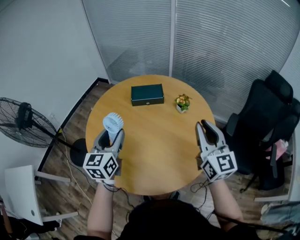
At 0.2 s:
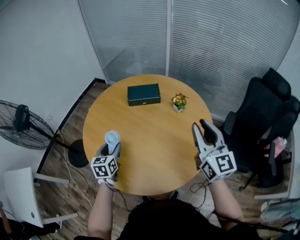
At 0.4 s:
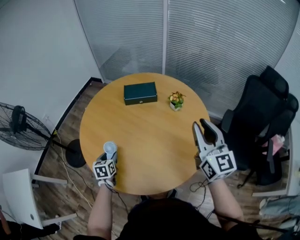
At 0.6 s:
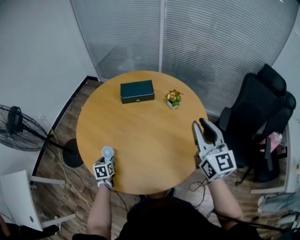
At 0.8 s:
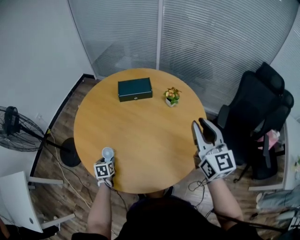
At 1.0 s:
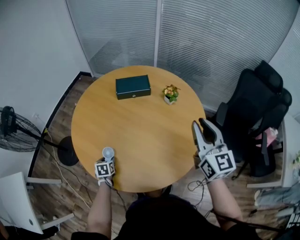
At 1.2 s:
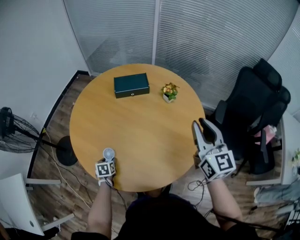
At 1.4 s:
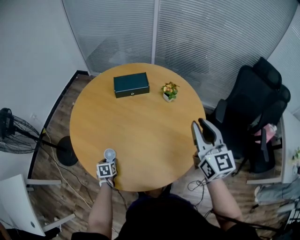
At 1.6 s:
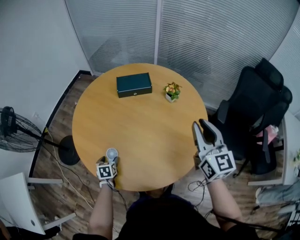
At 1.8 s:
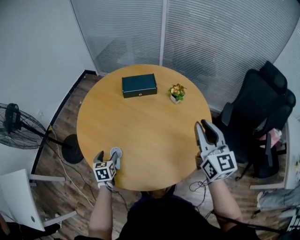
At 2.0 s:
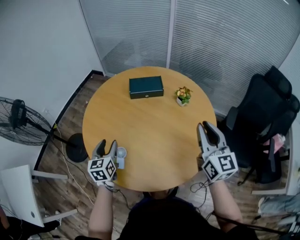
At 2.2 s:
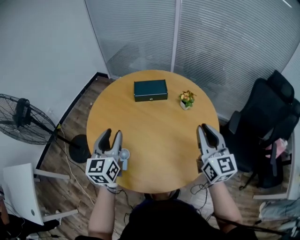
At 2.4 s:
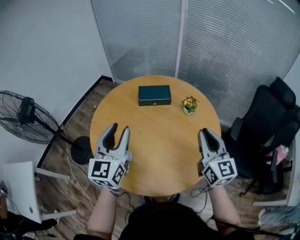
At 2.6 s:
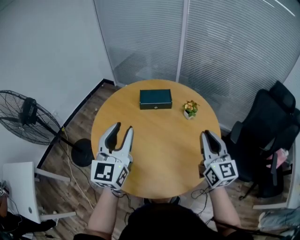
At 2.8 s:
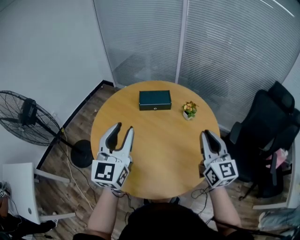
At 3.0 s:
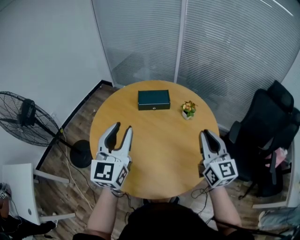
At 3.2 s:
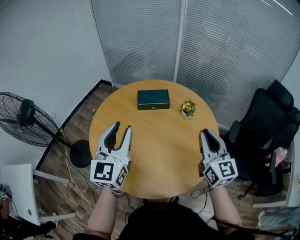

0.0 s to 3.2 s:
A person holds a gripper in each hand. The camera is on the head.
0.0 to 1.6 s: The left gripper moves downward, approximately 35 cm, and angles its fingers downward, by roughly 40 degrees.
1.6 to 3.2 s: The left gripper heads upward, covering roughly 40 cm, tips its fingers upward by about 60 degrees, and closes its fingers.

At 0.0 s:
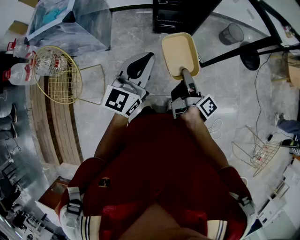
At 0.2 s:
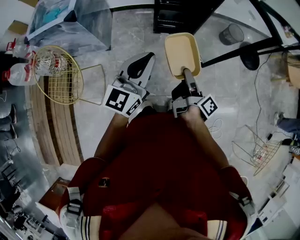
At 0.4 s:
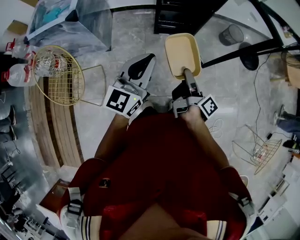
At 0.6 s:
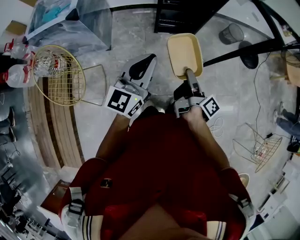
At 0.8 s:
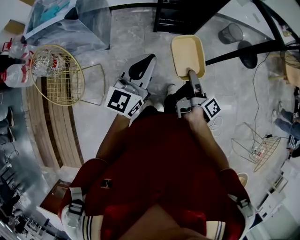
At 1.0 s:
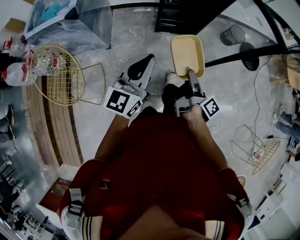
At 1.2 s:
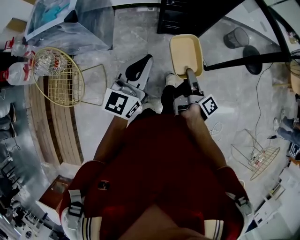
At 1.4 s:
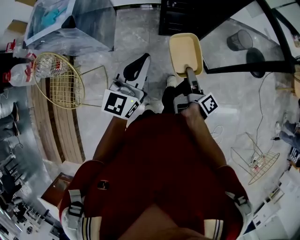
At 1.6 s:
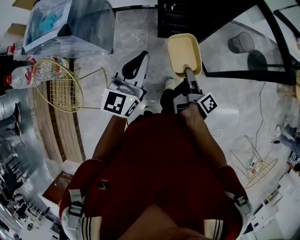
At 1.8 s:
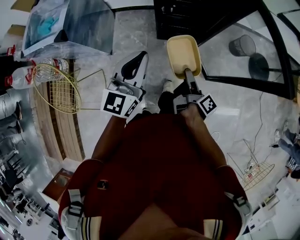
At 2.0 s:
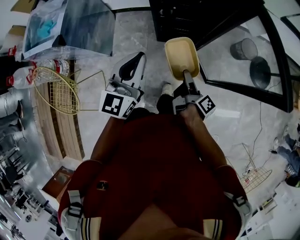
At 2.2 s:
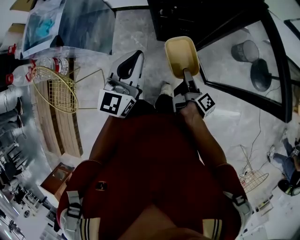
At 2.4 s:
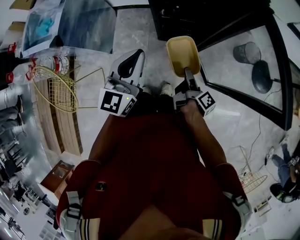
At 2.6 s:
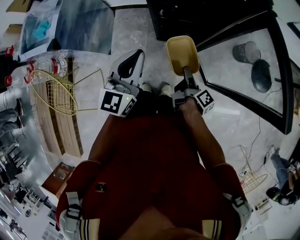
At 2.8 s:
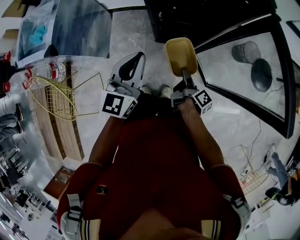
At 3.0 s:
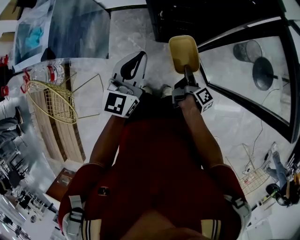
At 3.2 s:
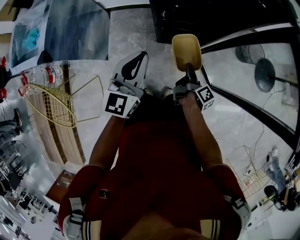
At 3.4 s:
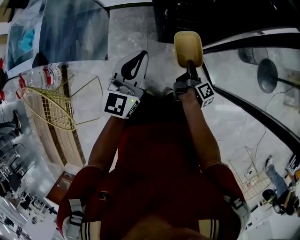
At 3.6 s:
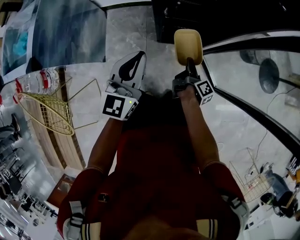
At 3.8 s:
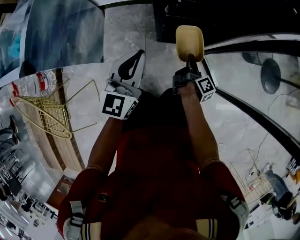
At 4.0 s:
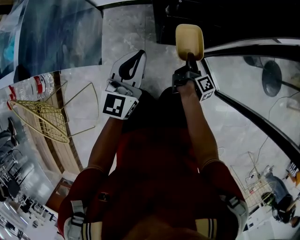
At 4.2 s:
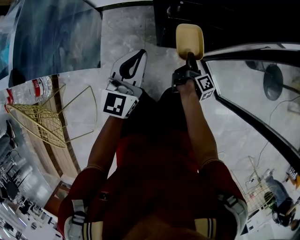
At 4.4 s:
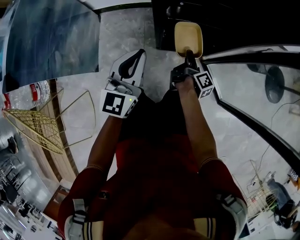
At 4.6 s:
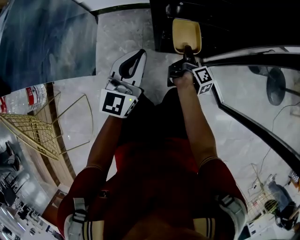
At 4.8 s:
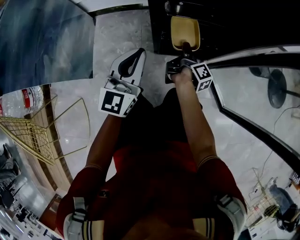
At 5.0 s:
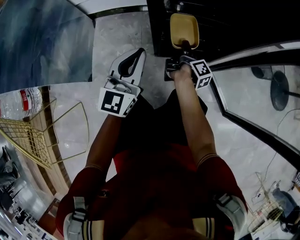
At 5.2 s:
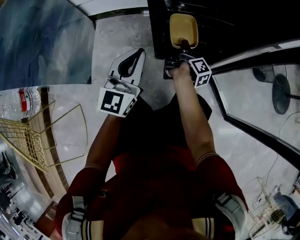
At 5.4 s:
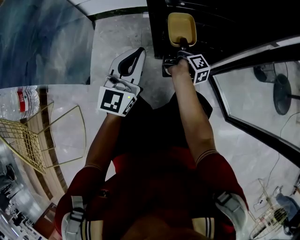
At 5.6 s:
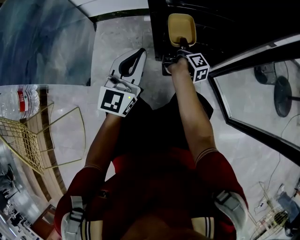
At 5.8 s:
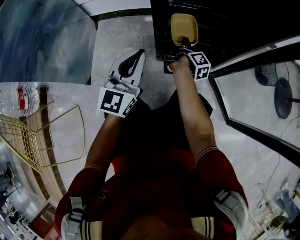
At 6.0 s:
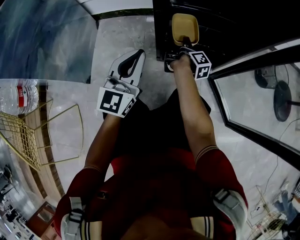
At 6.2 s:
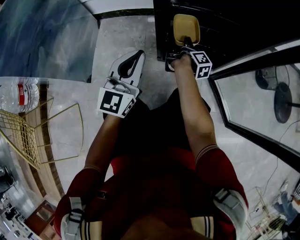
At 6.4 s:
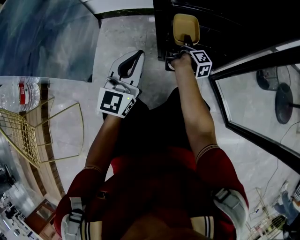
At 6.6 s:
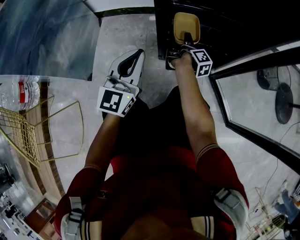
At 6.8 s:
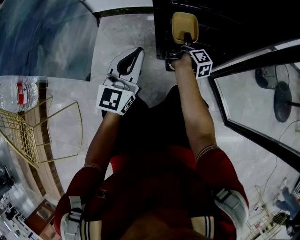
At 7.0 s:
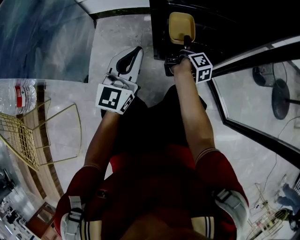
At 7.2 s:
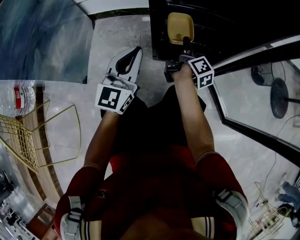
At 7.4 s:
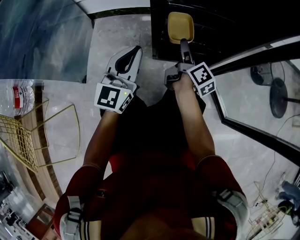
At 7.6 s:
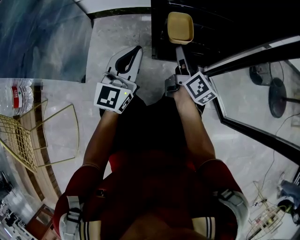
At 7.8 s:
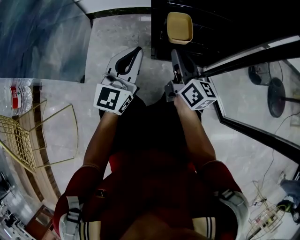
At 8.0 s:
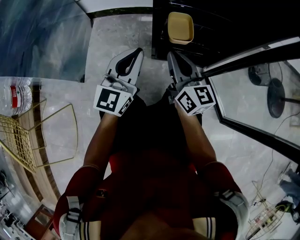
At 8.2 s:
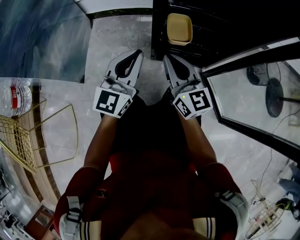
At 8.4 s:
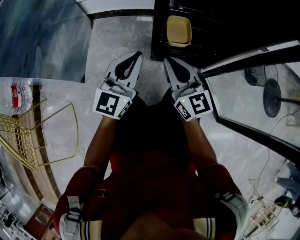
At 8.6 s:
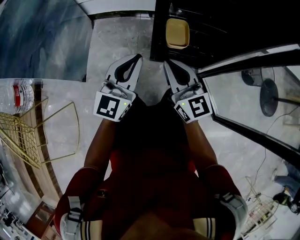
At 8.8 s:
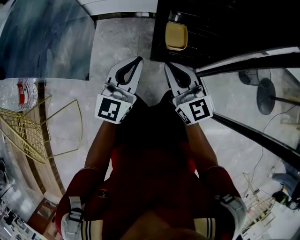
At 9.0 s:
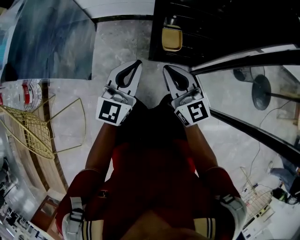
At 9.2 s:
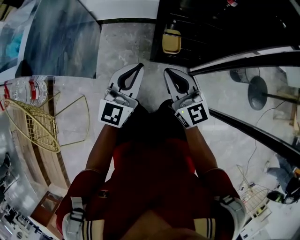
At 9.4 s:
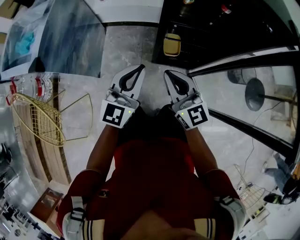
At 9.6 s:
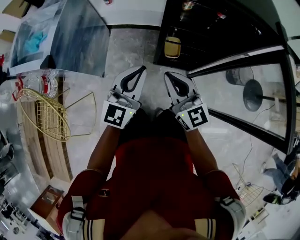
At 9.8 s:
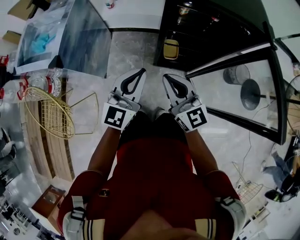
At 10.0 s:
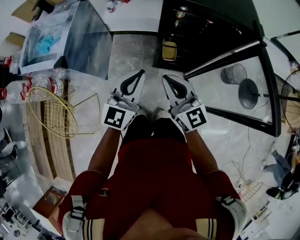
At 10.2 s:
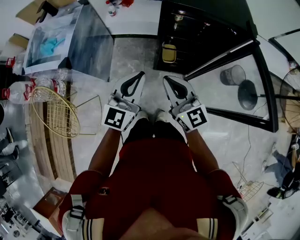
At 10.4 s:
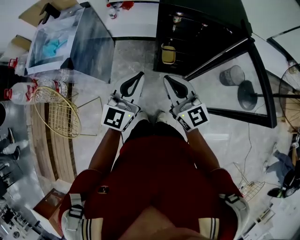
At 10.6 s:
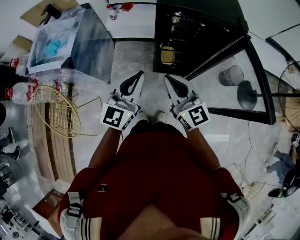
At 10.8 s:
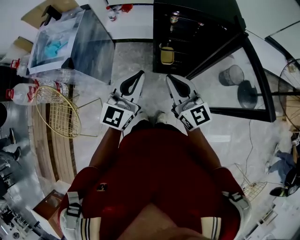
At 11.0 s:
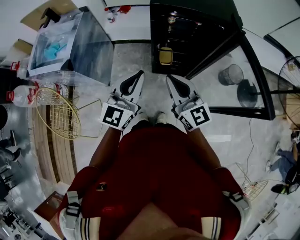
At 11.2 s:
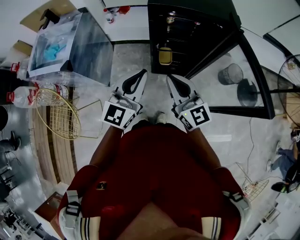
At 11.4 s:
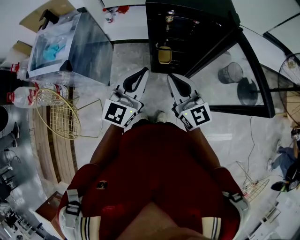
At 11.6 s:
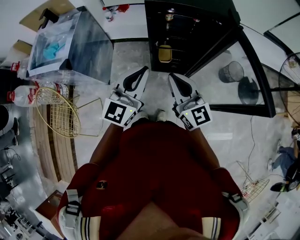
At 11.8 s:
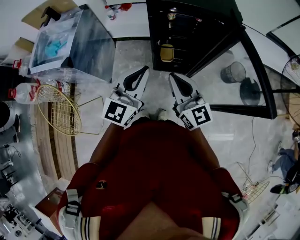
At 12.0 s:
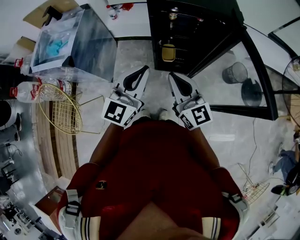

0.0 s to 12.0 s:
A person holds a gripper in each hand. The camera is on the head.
0.0 to 1.6 s: The two grippers go roughly 15 cm forward.
1.6 to 3.0 s: The grippers both shift forward and downward by approximately 20 cm.
3.0 to 4.4 s: The right gripper is displaced downward and forward by about 30 cm, while the left gripper shifts approximately 25 cm downward.
4.4 to 6.0 s: The left gripper moves downward, about 15 cm. The right gripper shifts approximately 15 cm downward and forward.
6.0 to 7.6 s: The right gripper shifts roughly 15 cm upward and backward, rolls counterclockwise, seen from behind, by roughly 40 degrees, and opens and closes again.
7.6 to 9.0 s: The two grippers go some 20 cm upward. The right gripper rolls counterclockwise, seen from behind, by approximately 50 degrees, and closes.
9.0 to 10.4 s: Both grippers move upward, about 35 cm.
10.4 to 12.0 s: Both grippers travel together to the right, approximately 5 cm.

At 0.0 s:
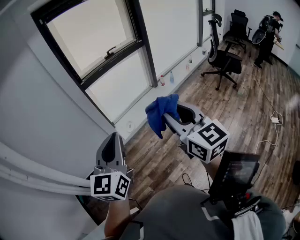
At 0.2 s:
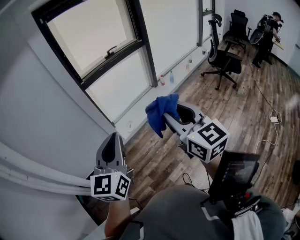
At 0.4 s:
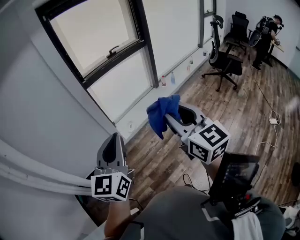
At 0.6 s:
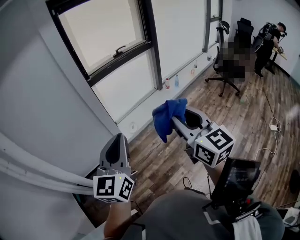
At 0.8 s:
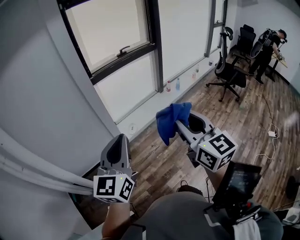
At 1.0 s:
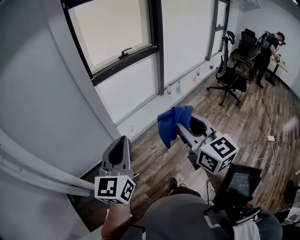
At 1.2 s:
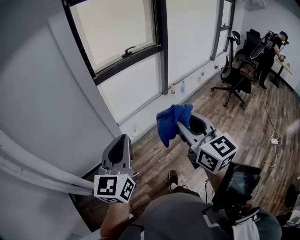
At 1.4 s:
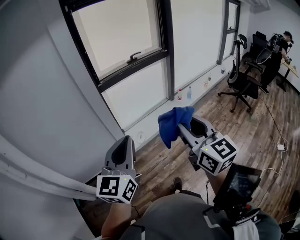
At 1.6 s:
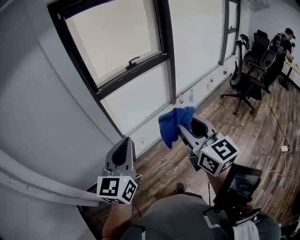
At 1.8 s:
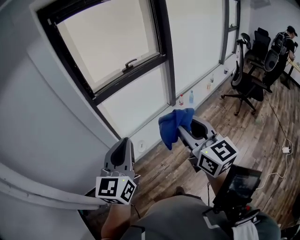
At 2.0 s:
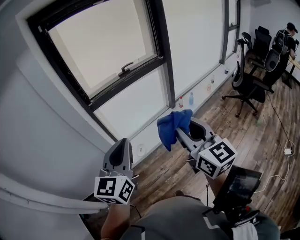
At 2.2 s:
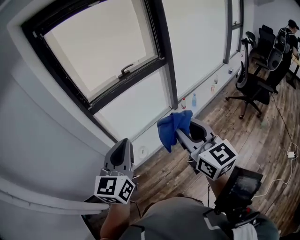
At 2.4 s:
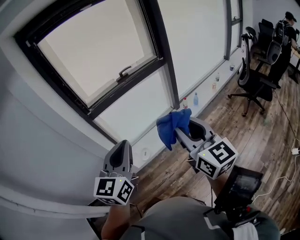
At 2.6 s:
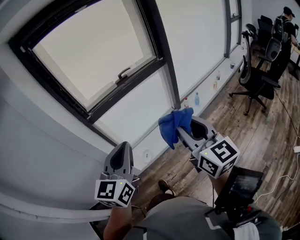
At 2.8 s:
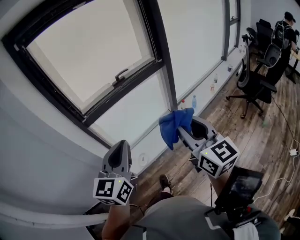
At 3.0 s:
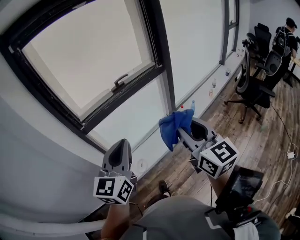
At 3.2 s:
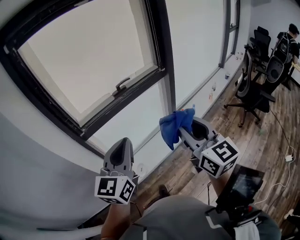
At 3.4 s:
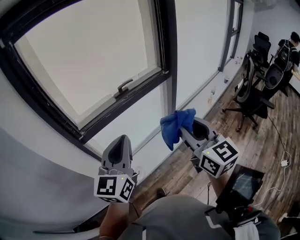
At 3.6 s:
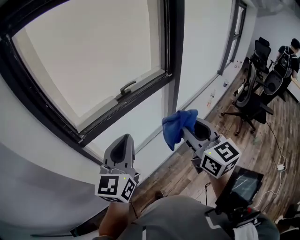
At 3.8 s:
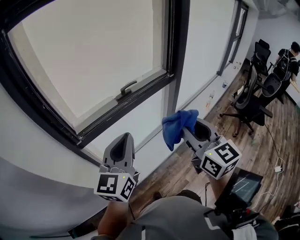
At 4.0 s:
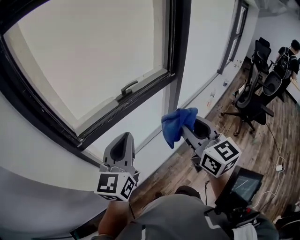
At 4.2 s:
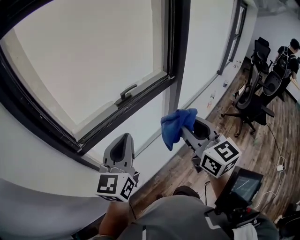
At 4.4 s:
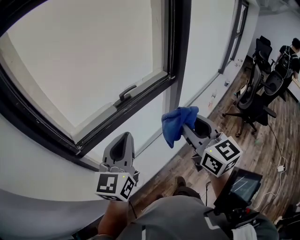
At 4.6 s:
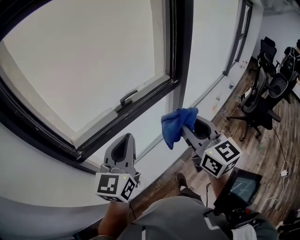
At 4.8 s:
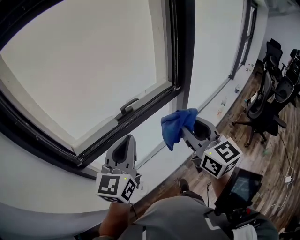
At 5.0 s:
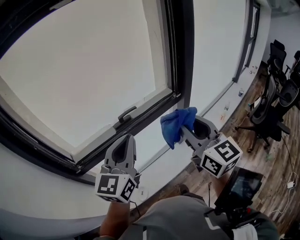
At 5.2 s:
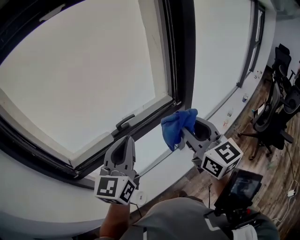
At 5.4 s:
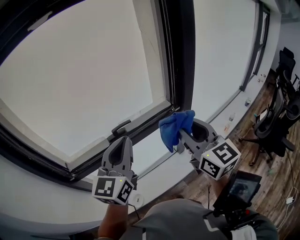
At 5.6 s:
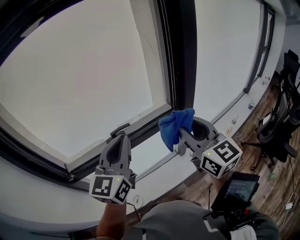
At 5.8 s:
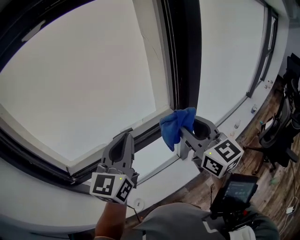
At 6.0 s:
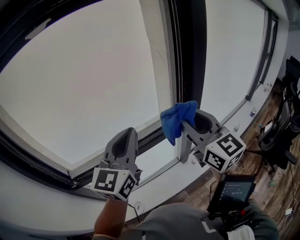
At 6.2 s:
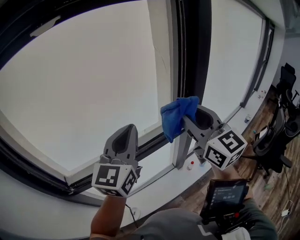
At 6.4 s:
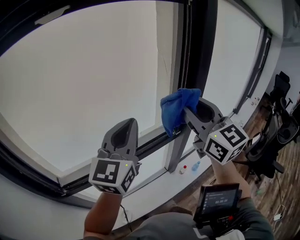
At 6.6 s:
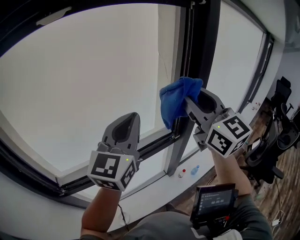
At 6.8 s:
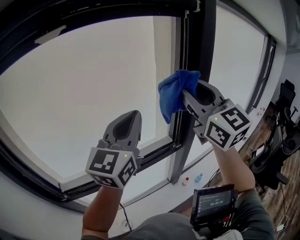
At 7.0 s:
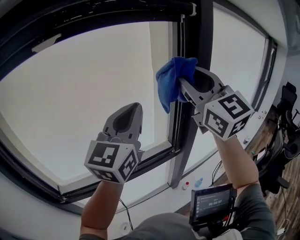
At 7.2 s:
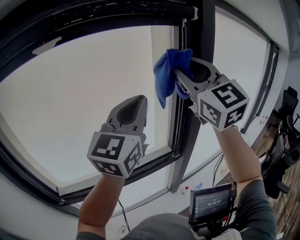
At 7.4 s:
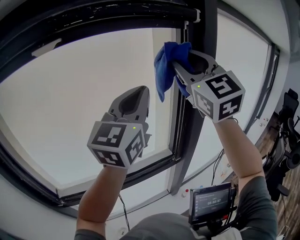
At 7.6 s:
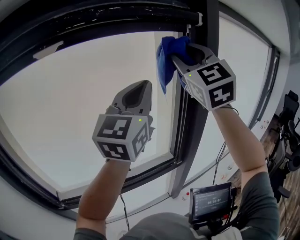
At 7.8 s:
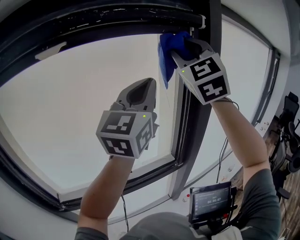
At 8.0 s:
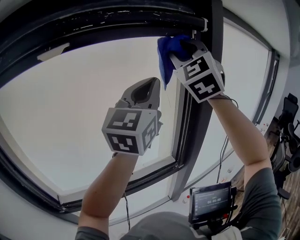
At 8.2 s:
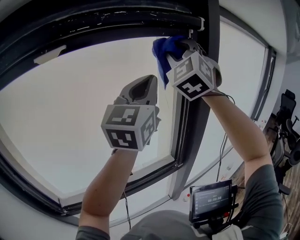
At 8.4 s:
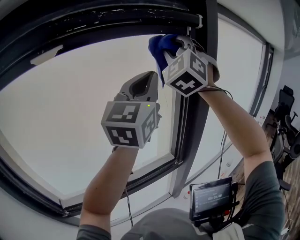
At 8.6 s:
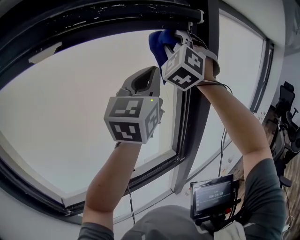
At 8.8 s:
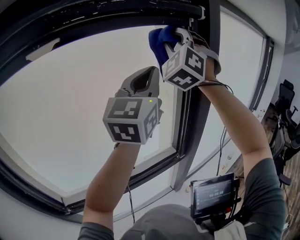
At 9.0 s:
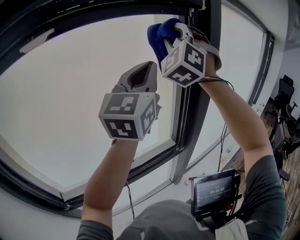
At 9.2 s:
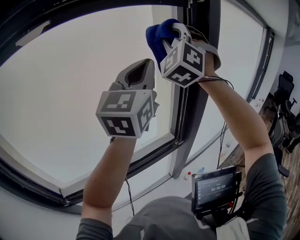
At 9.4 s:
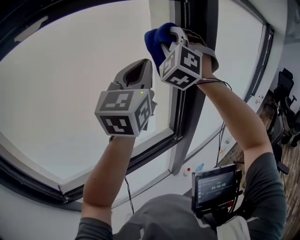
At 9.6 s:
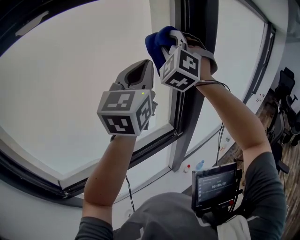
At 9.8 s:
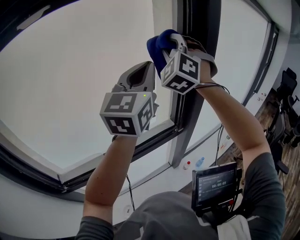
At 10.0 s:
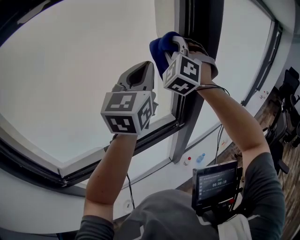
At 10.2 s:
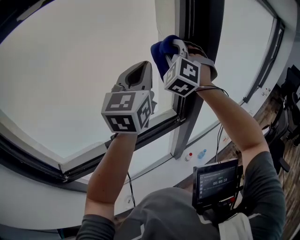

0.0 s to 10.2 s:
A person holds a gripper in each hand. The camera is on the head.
0.0 to 1.4 s: Both grippers travel together forward and to the left, some 10 cm.
1.4 to 3.0 s: Both grippers travel together forward, roughly 35 cm.
3.0 to 4.4 s: The grippers both shift forward by about 25 cm.
4.4 to 5.8 s: The two grippers go about 25 cm forward and to the right.
5.8 to 7.2 s: Both grippers travel together upward and forward, about 25 cm. The right gripper rotates some 30 degrees.
7.2 to 8.8 s: The two grippers go approximately 10 cm forward and upward. The right gripper rolls counterclockwise, seen from behind, by about 50 degrees.
8.8 to 10.2 s: The left gripper goes about 15 cm downward; the right gripper is displaced downward by roughly 20 cm.
